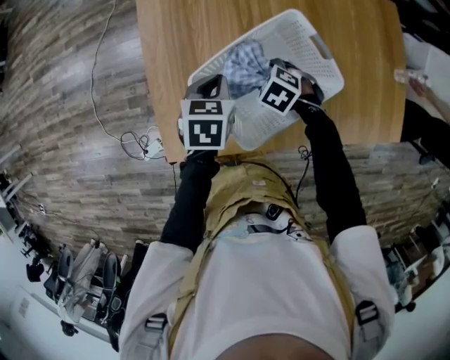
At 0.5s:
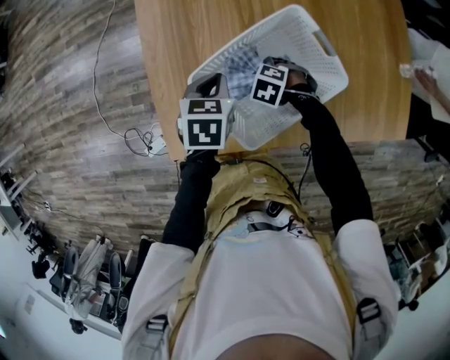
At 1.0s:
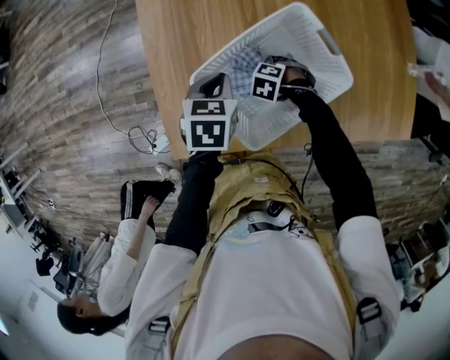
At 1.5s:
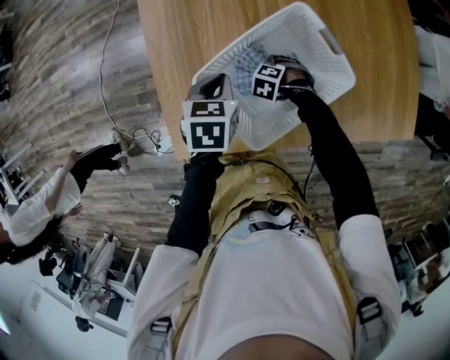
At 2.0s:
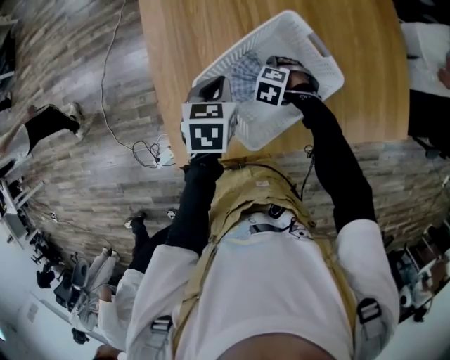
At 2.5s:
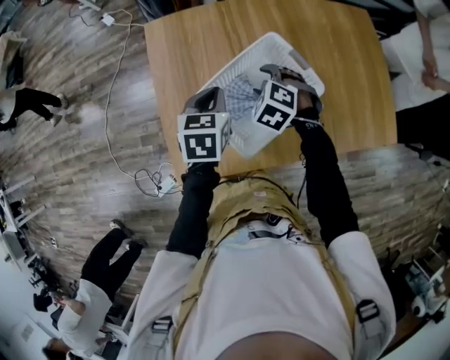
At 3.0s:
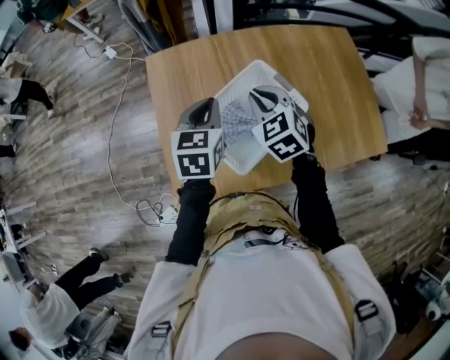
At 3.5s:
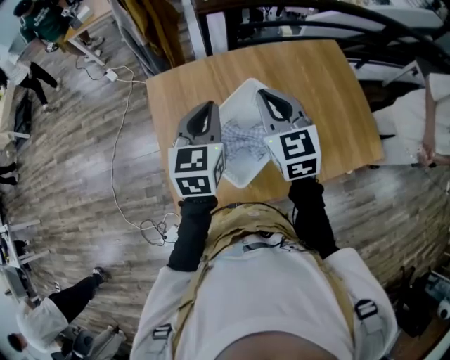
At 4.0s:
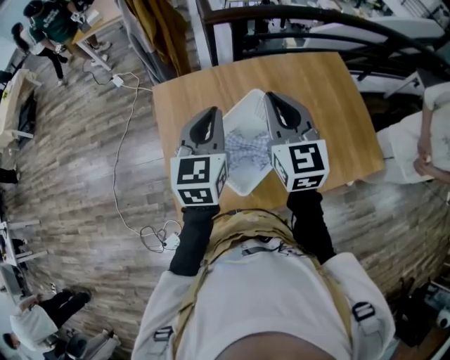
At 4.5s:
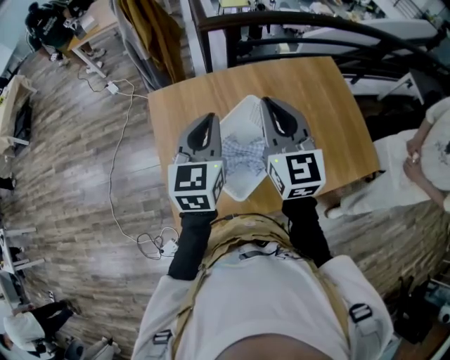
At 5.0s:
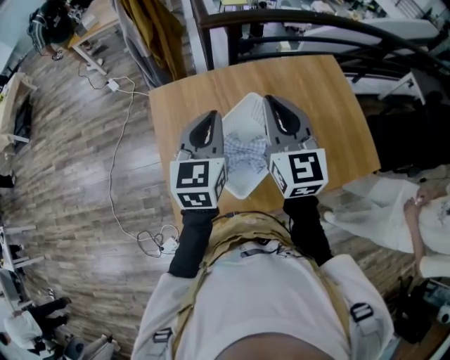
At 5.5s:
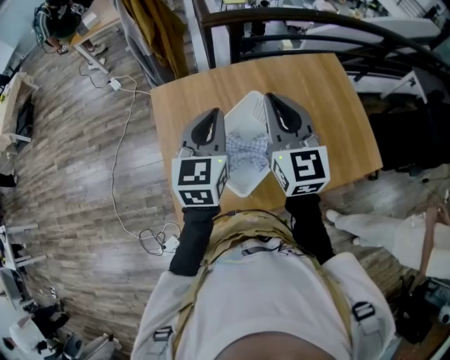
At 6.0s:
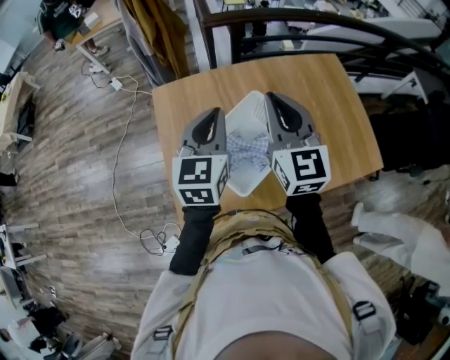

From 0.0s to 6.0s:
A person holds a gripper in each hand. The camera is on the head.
From 0.0s to 2.0s: The right gripper opens its fingers.
From 2.0s to 4.0s: The left gripper moves upward, about 25 cm, and tips its fingers upward by some 40 degrees; the right gripper is displaced upward by some 40 cm, points its fingers roughly 80 degrees further upward, and closes its fingers.
From 4.0s to 6.0s: The grippers move only a little.

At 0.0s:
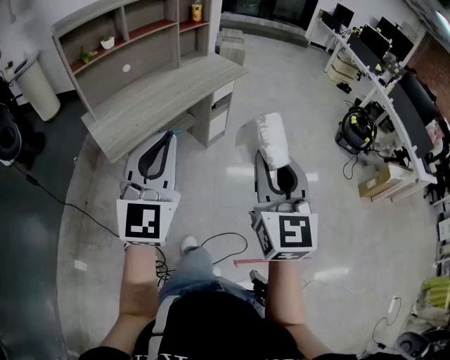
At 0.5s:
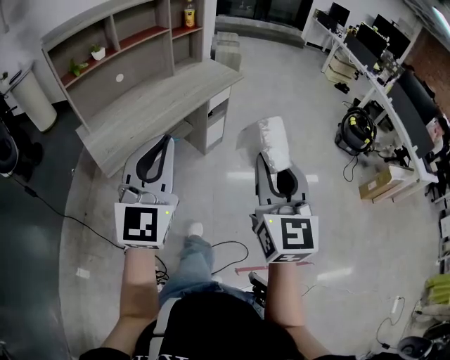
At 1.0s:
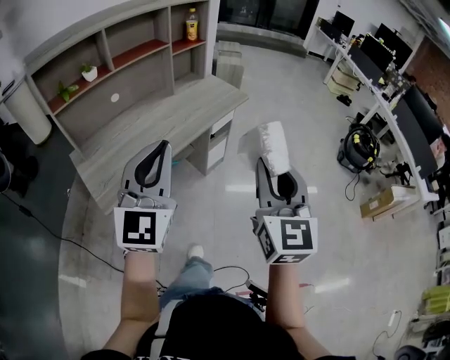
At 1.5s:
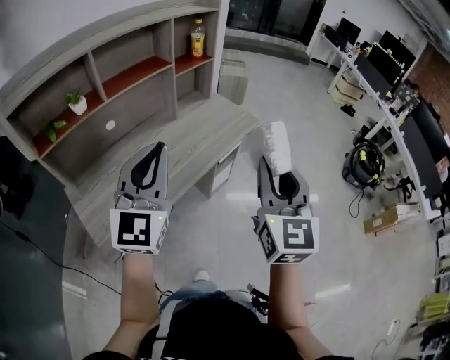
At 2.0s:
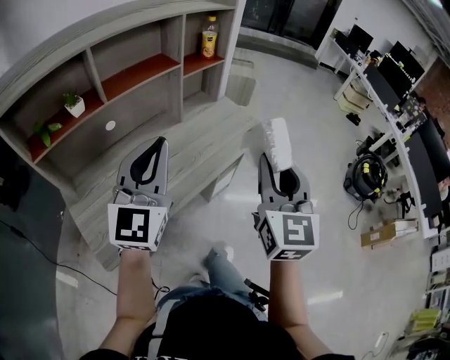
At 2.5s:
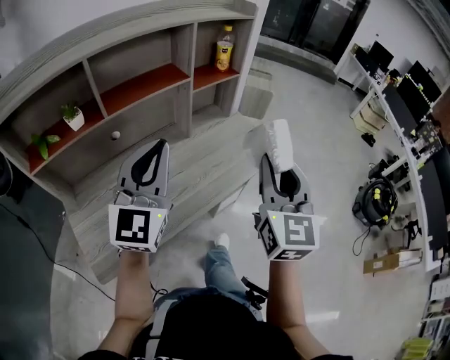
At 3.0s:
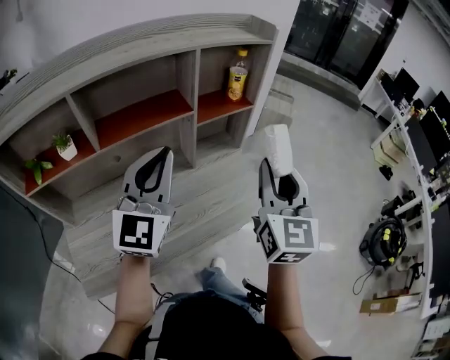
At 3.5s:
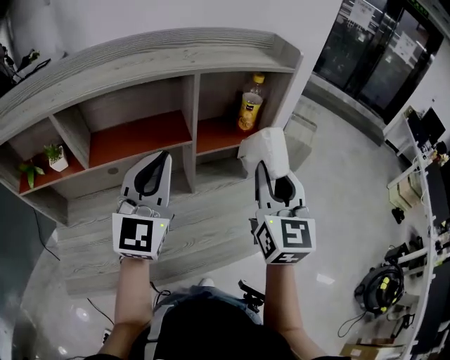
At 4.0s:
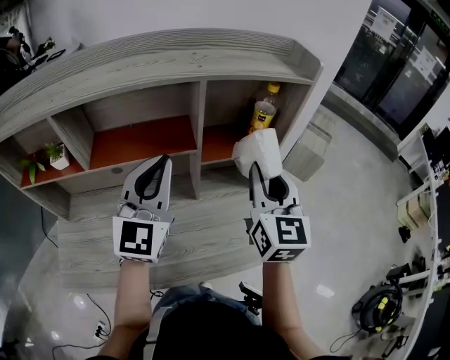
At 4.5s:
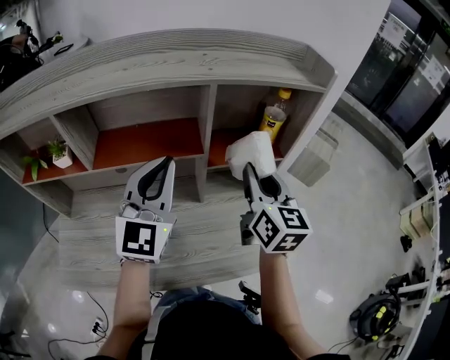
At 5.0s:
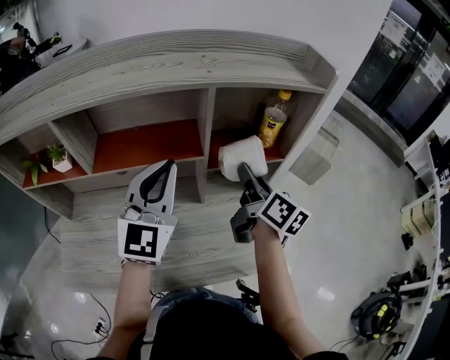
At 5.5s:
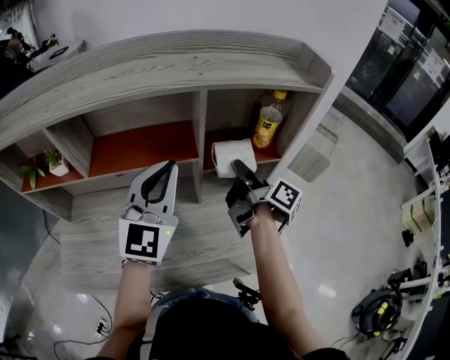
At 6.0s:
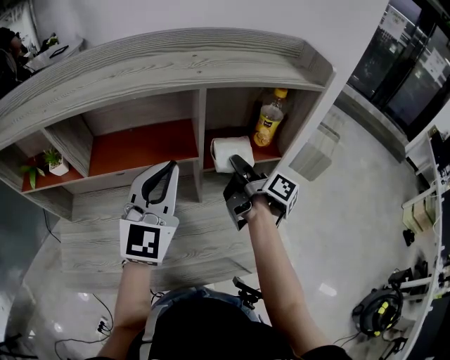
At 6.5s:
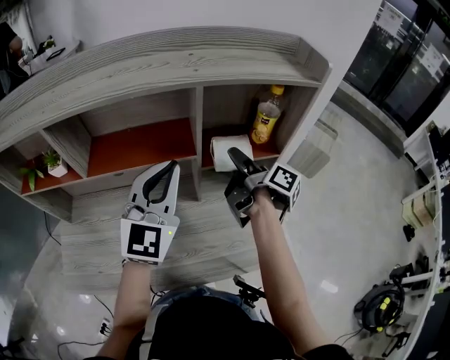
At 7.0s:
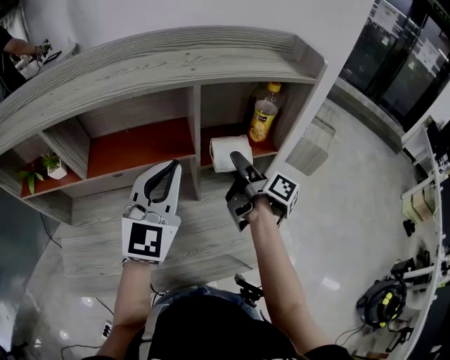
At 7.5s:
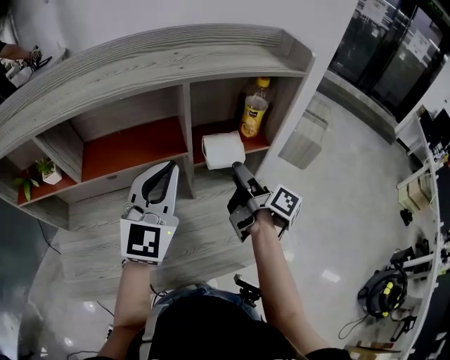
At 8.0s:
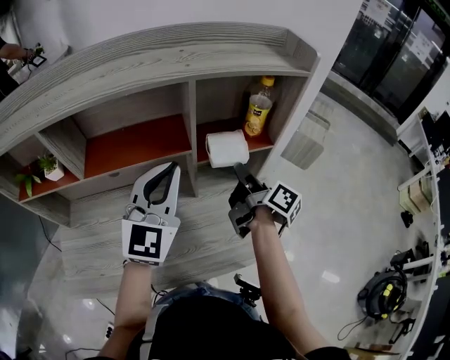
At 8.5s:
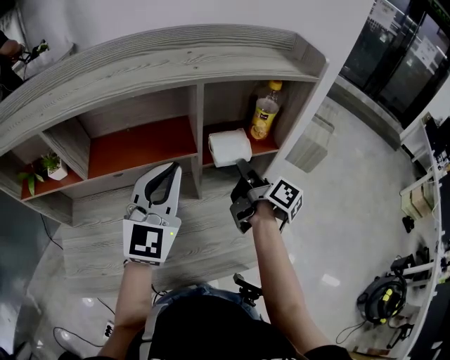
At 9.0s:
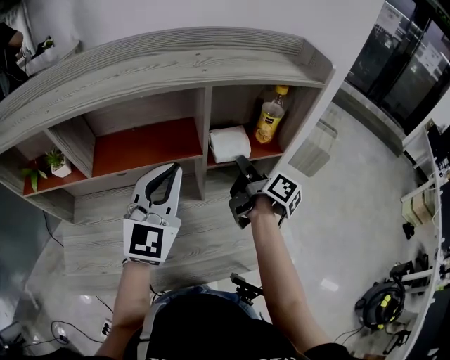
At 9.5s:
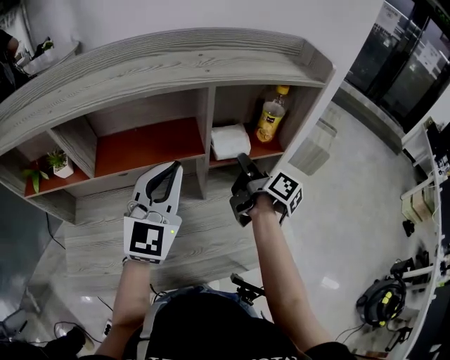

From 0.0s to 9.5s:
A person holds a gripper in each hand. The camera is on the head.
From 0.0s to 2.0s: The pair of grippers is taken forward, some 50 cm.
From 2.0s to 4.0s: The left gripper changes place by some 35 cm, and changes its angle by approximately 30 degrees; the right gripper shifts by some 50 cm, and turns by about 30 degrees.
From 4.0s to 5.5s: The right gripper shifts roughly 15 cm downward and forward, and rotates around the line of its fingers by some 80 degrees, clockwise from behind.
From 5.5s to 7.5s: The right gripper shifts by about 5 cm, and opens up.
From 7.5s to 9.5s: The right gripper shifts by some 5 cm, and closes up.

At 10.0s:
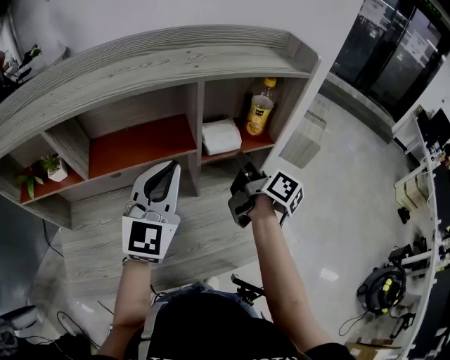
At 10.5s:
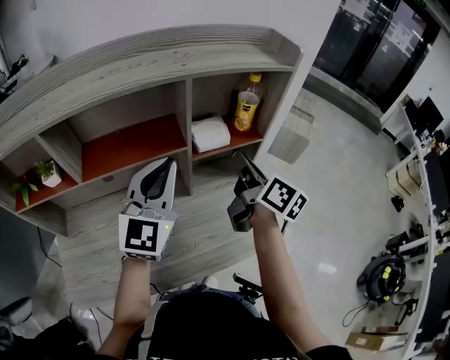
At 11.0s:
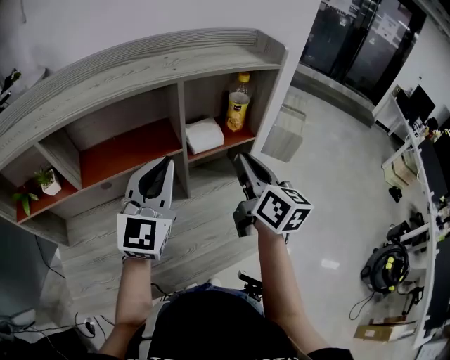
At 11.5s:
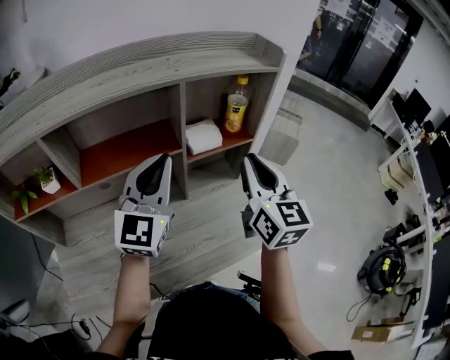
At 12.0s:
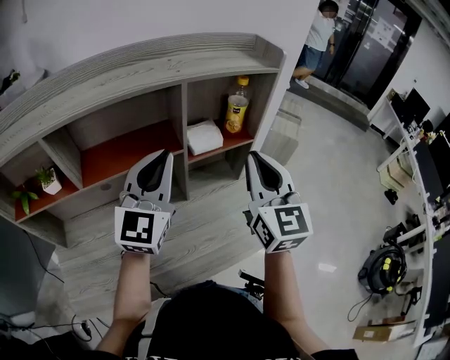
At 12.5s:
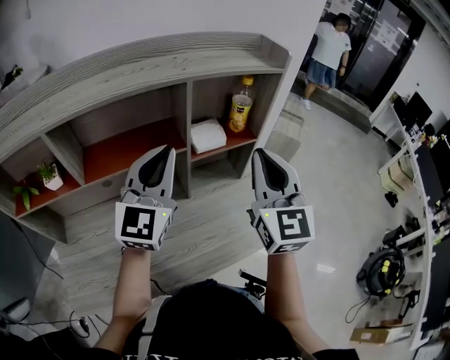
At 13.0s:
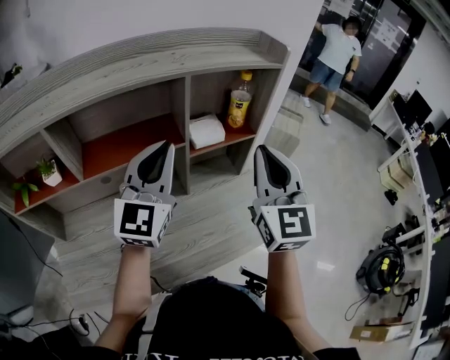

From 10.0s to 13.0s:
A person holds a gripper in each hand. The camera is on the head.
From 10.0s to 11.5s: The right gripper goes approximately 15 cm backward and upward, and rotates around the line of its fingers by approximately 60 degrees, counterclockwise from behind.
From 11.5s to 13.0s: The grippers stay close to where they were, moving slightly.

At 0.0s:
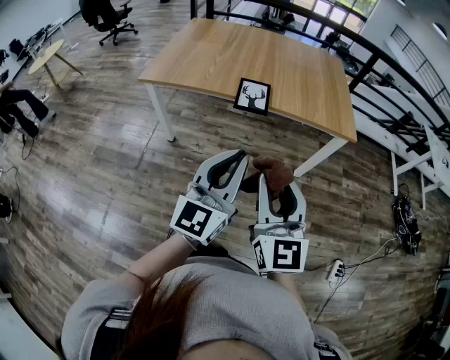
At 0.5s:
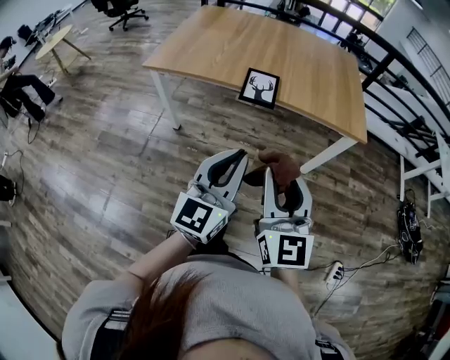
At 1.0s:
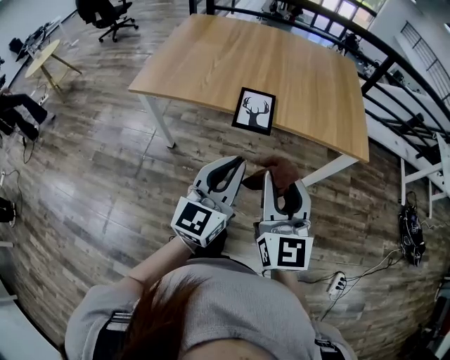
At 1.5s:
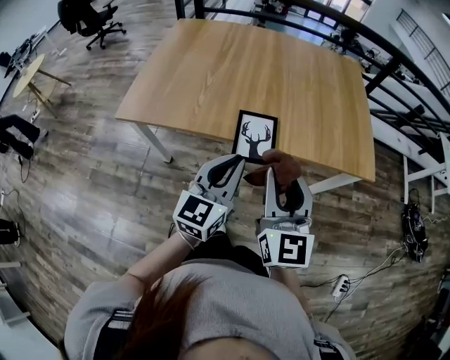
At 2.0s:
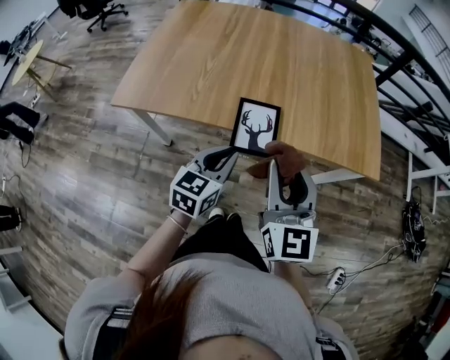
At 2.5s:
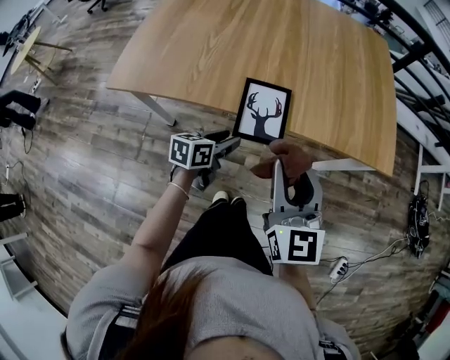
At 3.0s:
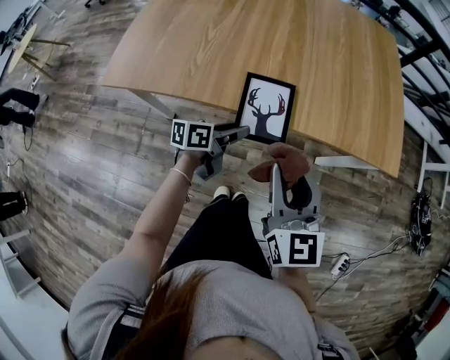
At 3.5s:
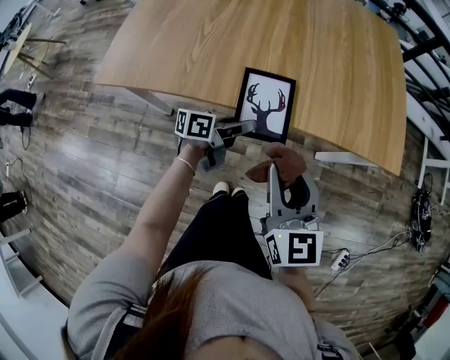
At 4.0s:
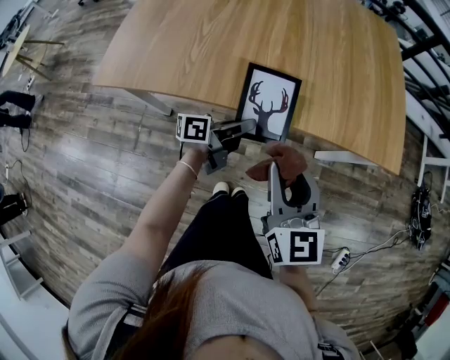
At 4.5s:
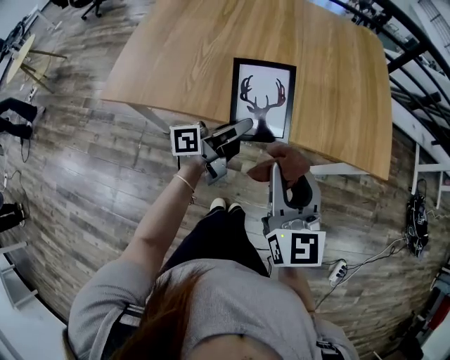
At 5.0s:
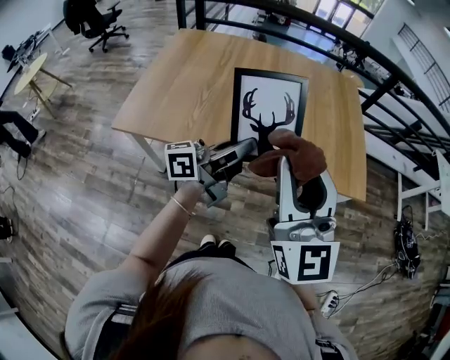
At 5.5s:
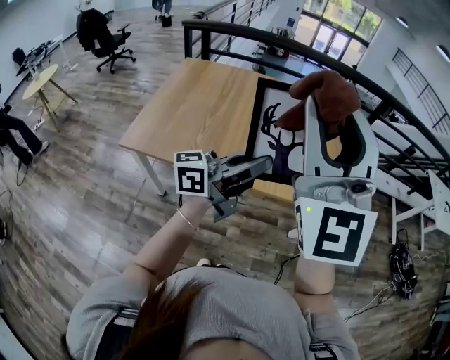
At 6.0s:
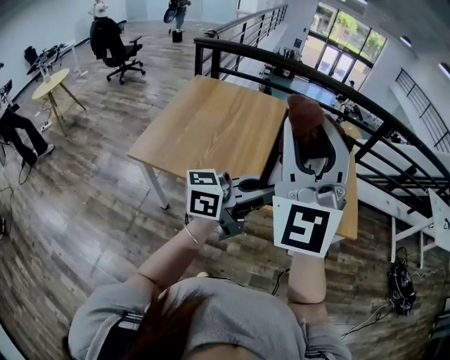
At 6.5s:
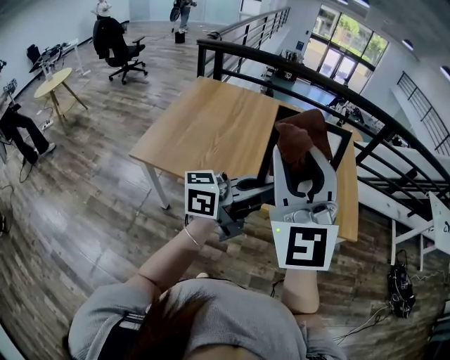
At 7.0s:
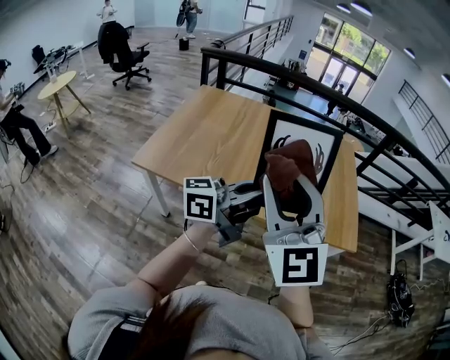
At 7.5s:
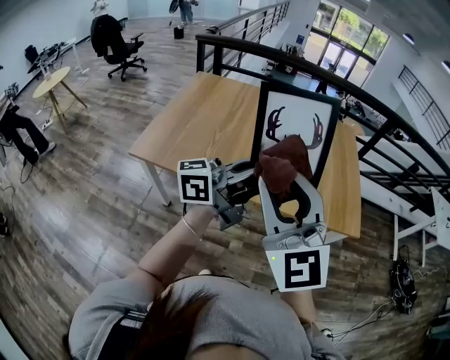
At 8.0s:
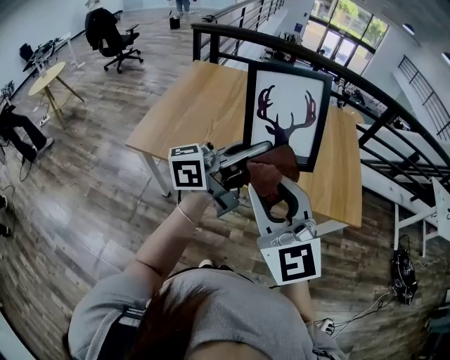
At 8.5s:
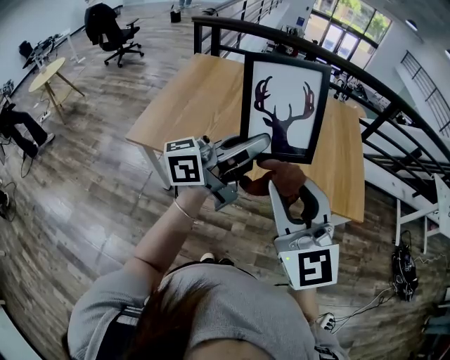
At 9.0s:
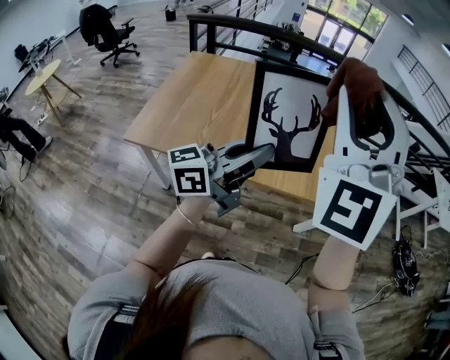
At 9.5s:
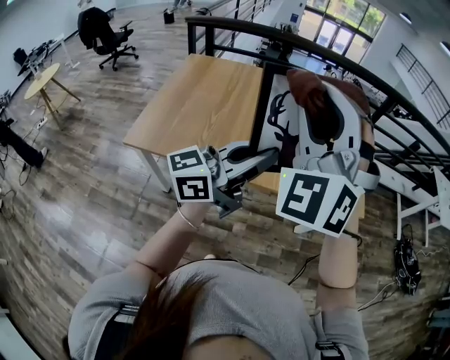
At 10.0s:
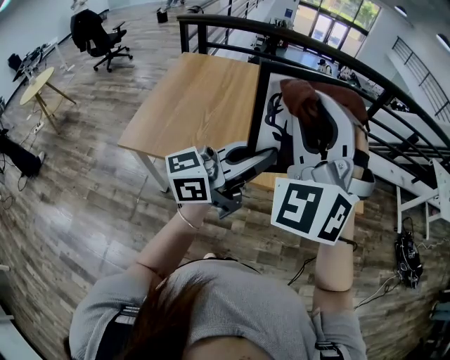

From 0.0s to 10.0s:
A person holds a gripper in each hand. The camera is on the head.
From 0.0s to 2.0s: The left gripper is displaced forward and downward by some 40 cm, and angles its fingers downward, by some 30 degrees. The right gripper is displaced forward by roughly 35 cm.
From 2.0s to 4.0s: The left gripper shifts some 15 cm downward and forward, rolls counterclockwise, seen from behind, by about 50 degrees, and opens and closes again, while the right gripper is displaced downward by about 10 cm.
From 4.0s to 6.0s: Both grippers move upward, roughly 40 cm. The right gripper twists about 50 degrees counterclockwise, seen from behind. Meanwhile the left gripper twists roughly 40 degrees clockwise, seen from behind.
From 6.0s to 8.0s: The left gripper shifts roughly 5 cm to the left. Meanwhile the right gripper shifts some 15 cm downward, and rotates approximately 40 degrees.
From 8.0s to 10.0s: The right gripper is displaced forward and upward by roughly 15 cm, and twists some 50 degrees counterclockwise, seen from behind.
